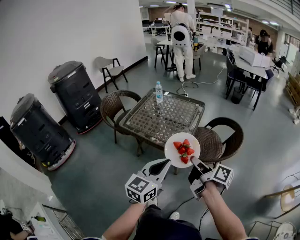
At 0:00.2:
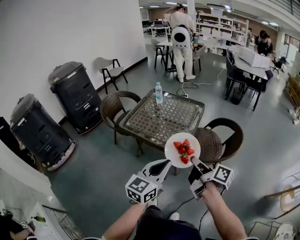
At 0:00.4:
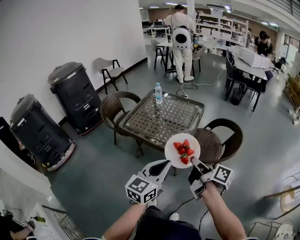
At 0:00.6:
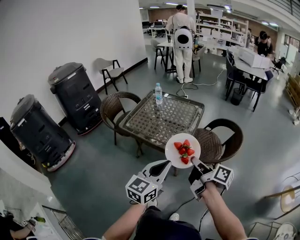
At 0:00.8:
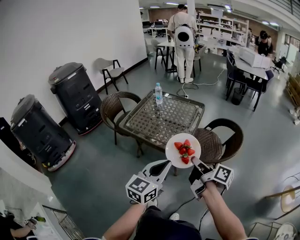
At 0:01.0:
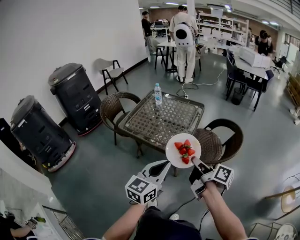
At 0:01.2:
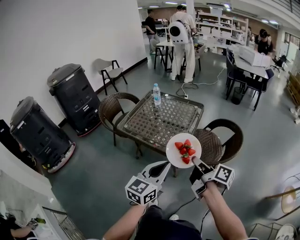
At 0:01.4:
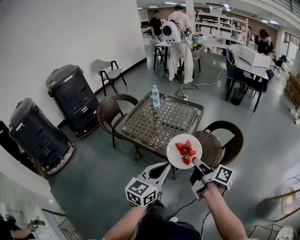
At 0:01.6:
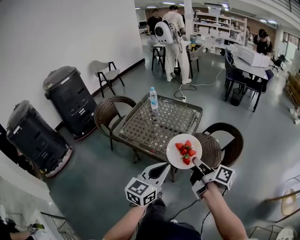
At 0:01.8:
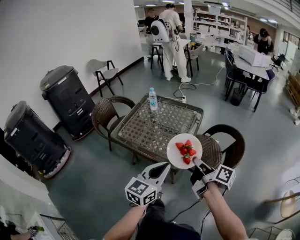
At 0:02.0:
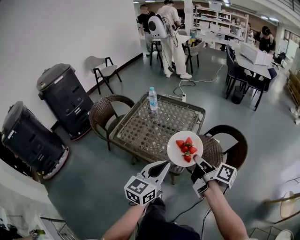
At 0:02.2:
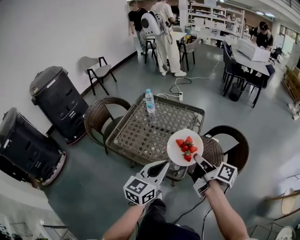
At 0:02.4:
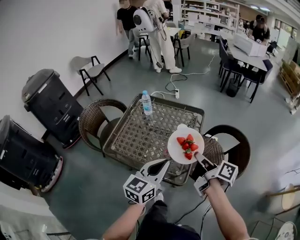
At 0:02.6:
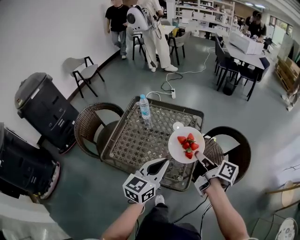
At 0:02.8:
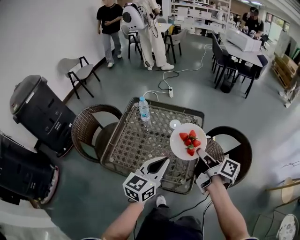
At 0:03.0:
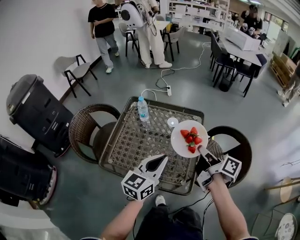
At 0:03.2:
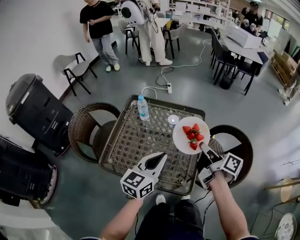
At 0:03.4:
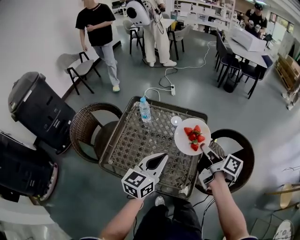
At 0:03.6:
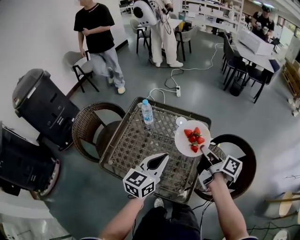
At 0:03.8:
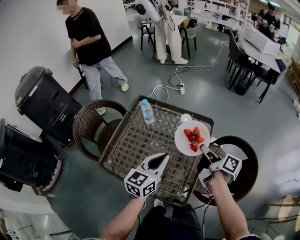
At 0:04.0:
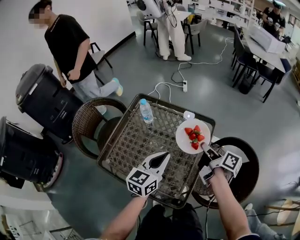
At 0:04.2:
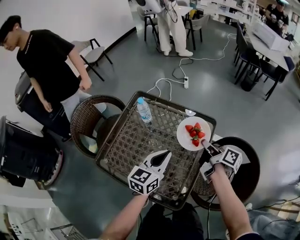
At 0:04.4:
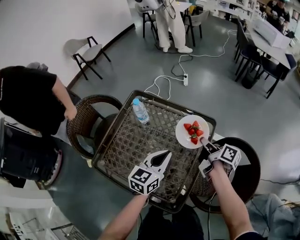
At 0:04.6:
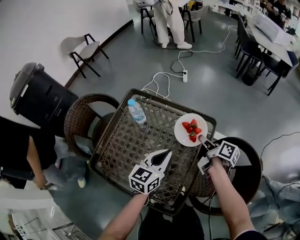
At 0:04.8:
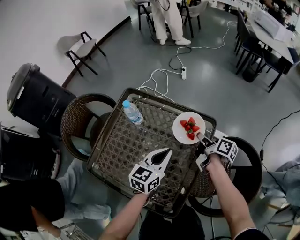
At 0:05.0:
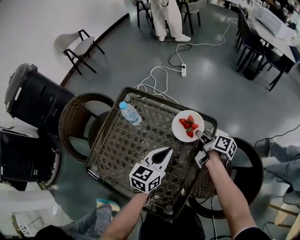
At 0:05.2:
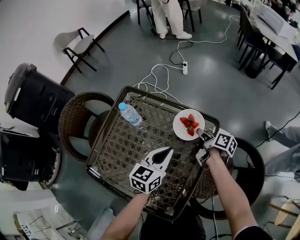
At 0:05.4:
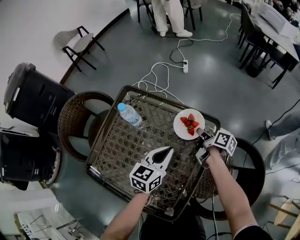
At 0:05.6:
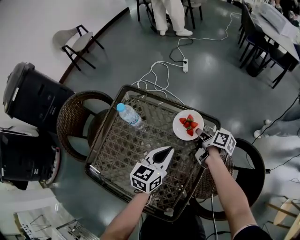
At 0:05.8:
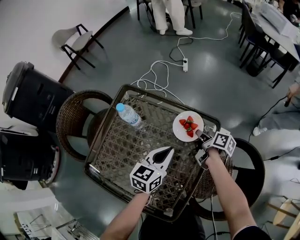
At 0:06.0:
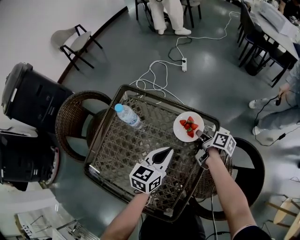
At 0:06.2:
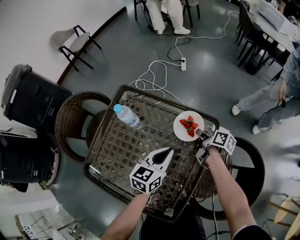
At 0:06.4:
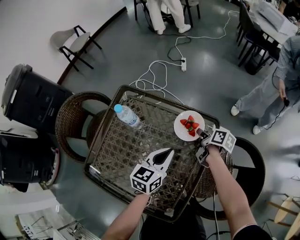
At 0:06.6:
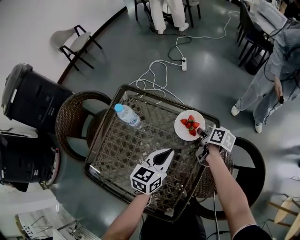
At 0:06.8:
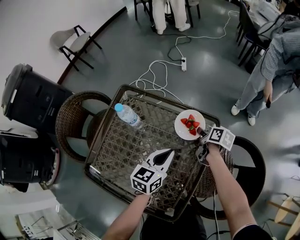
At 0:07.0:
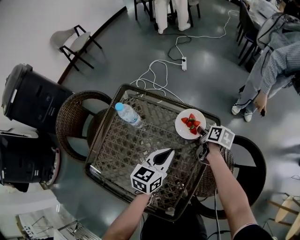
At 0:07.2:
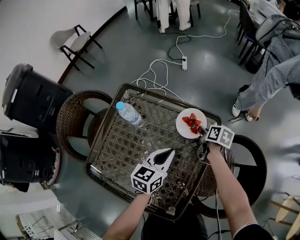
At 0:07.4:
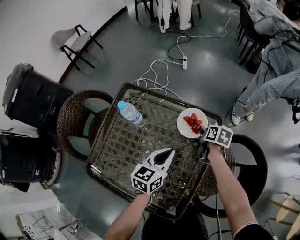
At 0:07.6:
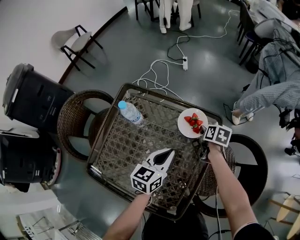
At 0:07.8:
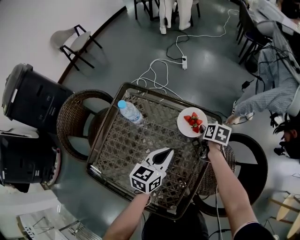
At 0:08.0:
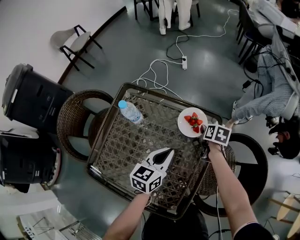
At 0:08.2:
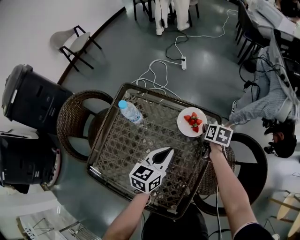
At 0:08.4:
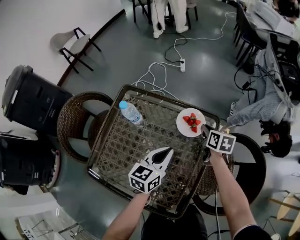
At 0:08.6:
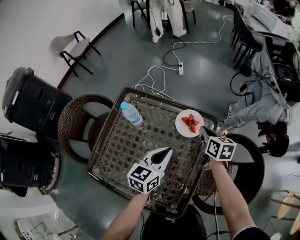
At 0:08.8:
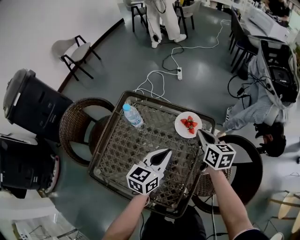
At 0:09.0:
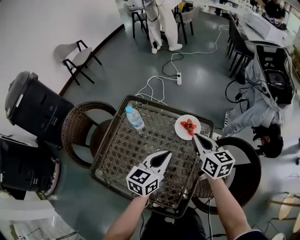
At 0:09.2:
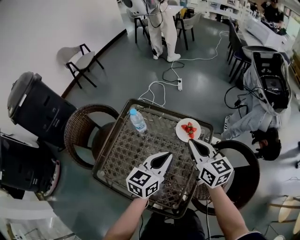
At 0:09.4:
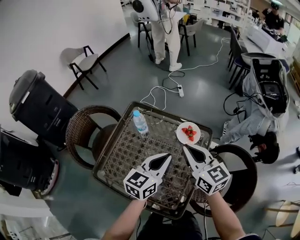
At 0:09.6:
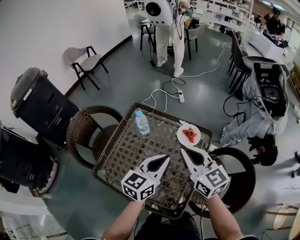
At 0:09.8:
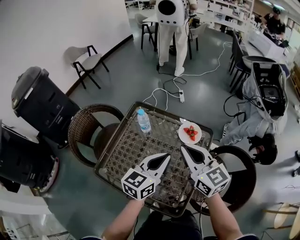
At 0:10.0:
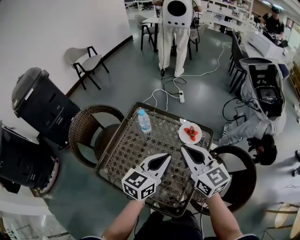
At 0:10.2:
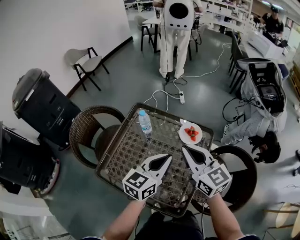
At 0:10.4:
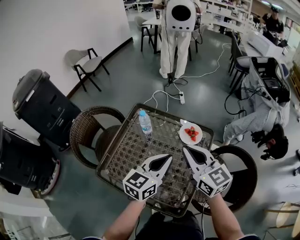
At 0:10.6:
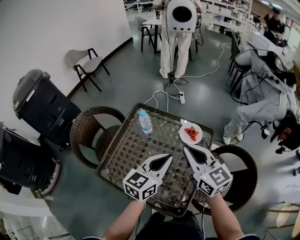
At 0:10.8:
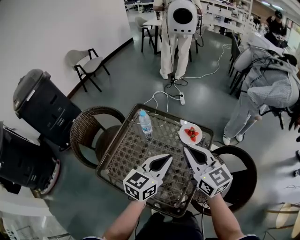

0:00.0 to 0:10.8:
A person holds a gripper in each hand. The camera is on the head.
0:00.0 to 0:01.6: Both grippers travel together forward, about 5 cm.
0:01.6 to 0:03.0: Both grippers move forward, some 25 cm.
0:03.0 to 0:04.6: The grippers both shift forward and downward by approximately 25 cm.
0:04.6 to 0:06.2: The left gripper shifts about 10 cm forward and downward. Meanwhile the right gripper travels downward and forward by some 15 cm.
0:06.2 to 0:07.8: The right gripper changes its angle by about 30 degrees.
0:07.8 to 0:09.2: The left gripper goes roughly 10 cm upward. The right gripper moves upward and backward, roughly 30 cm, and angles its fingers upward, by about 40 degrees.
0:09.2 to 0:10.8: The left gripper shifts roughly 5 cm upward, while the right gripper travels upward and backward by approximately 10 cm.

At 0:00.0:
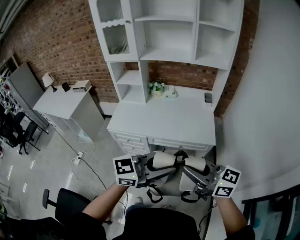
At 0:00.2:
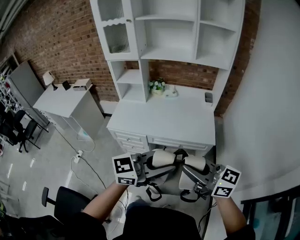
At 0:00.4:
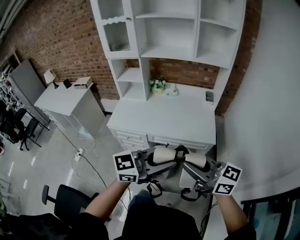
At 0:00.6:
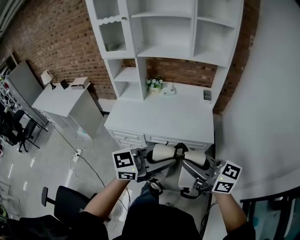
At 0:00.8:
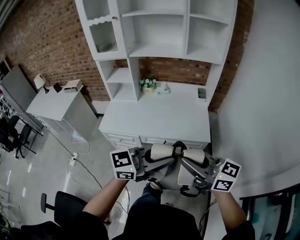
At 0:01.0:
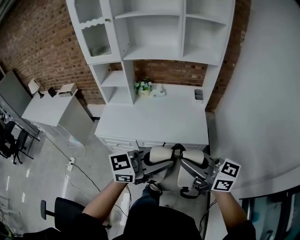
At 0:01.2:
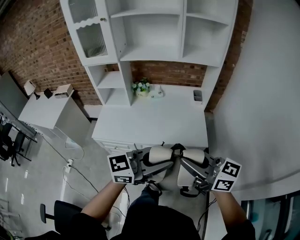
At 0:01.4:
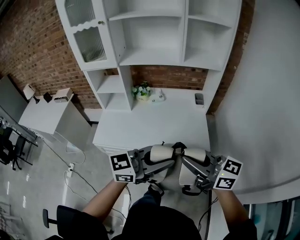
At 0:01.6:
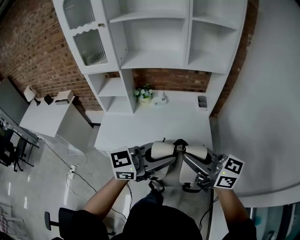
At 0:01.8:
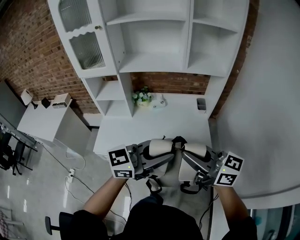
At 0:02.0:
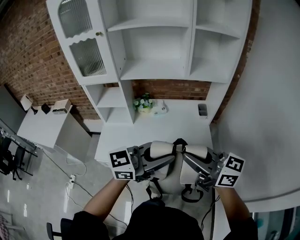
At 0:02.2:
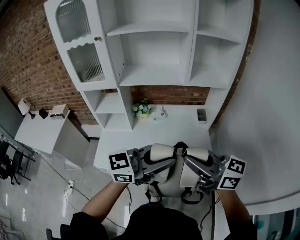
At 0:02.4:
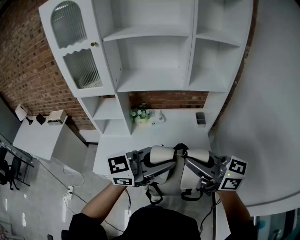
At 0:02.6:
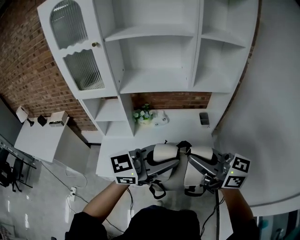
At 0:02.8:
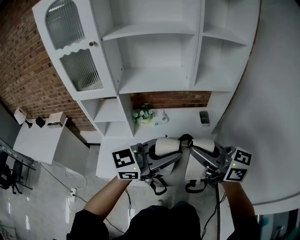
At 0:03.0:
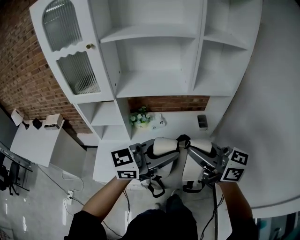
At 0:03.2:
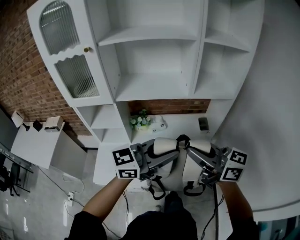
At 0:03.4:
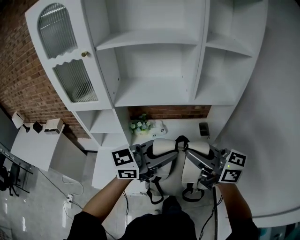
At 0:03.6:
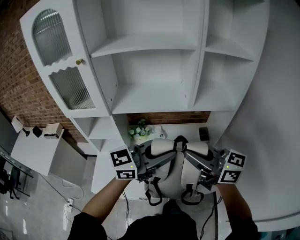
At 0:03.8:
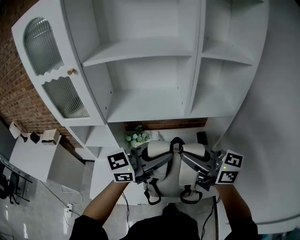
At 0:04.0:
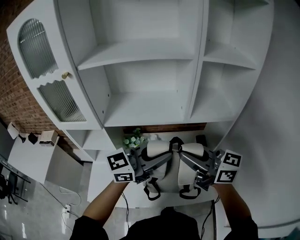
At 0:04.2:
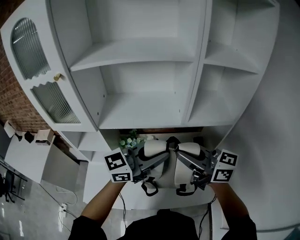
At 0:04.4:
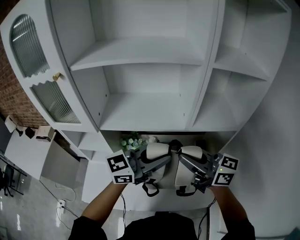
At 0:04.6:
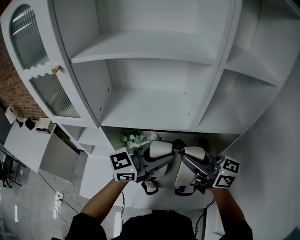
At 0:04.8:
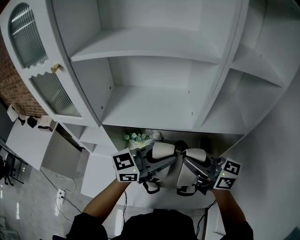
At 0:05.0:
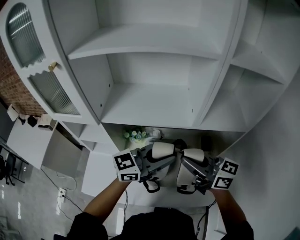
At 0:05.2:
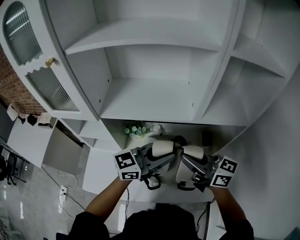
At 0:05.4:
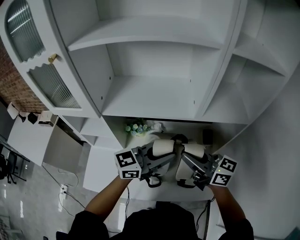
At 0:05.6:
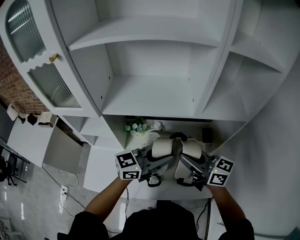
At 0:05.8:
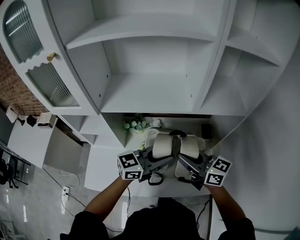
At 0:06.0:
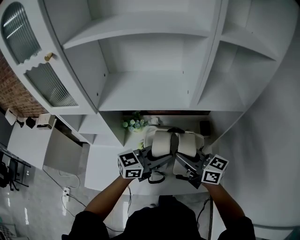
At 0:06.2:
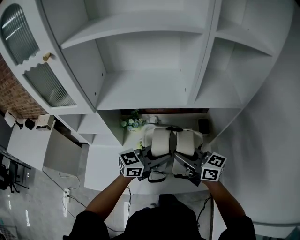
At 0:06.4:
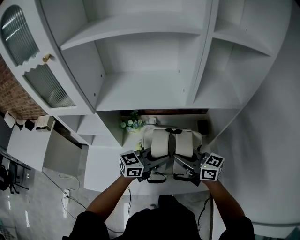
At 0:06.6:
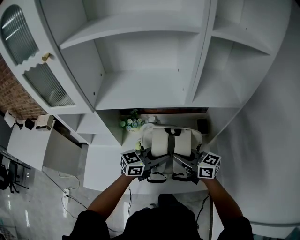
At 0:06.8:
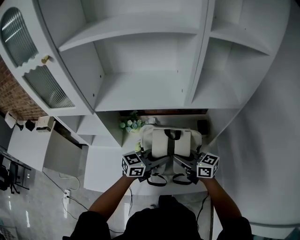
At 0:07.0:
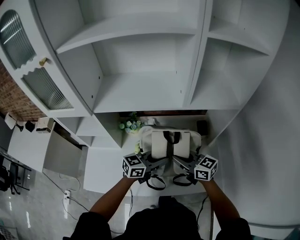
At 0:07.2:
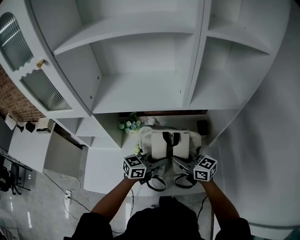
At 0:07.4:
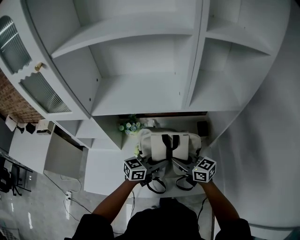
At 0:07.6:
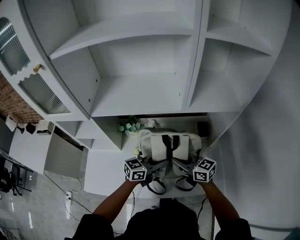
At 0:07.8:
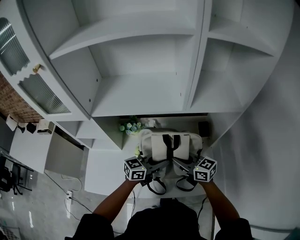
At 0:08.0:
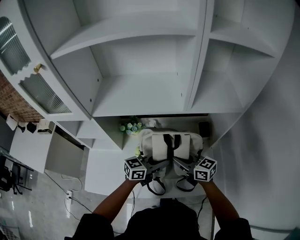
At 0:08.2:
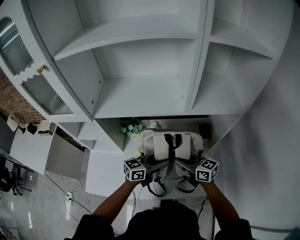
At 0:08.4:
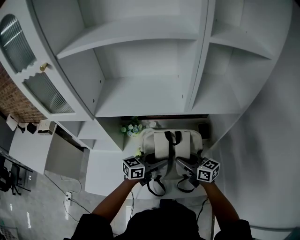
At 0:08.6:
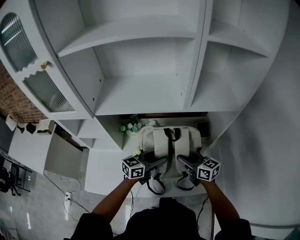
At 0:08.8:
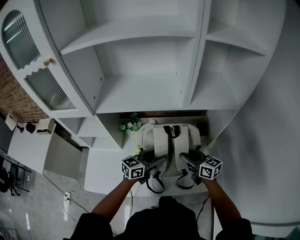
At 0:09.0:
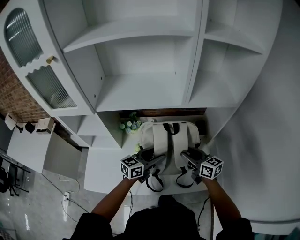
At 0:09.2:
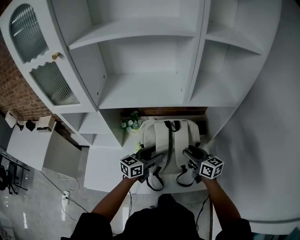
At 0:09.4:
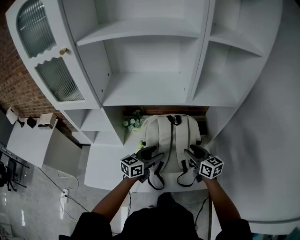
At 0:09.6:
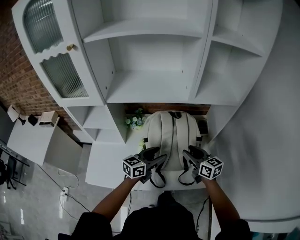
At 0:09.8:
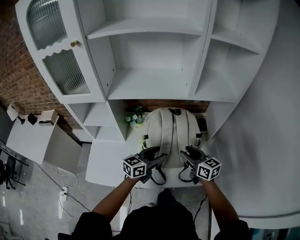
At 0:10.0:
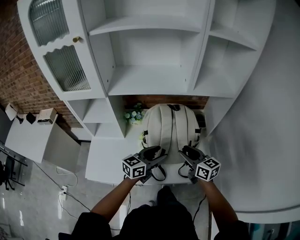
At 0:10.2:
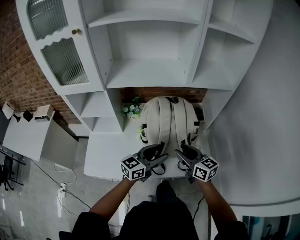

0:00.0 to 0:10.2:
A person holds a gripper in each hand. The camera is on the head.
0:00.0 to 0:01.4: The right gripper moves roughly 15 cm, while the left gripper shifts by about 15 cm.
0:01.4 to 0:03.0: The right gripper ends up approximately 25 cm from where it was; the left gripper shifts by about 25 cm.
0:03.0 to 0:04.4: The right gripper changes place by some 20 cm. Meanwhile the left gripper changes place by roughly 20 cm.
0:04.4 to 0:05.8: Both grippers move downward, approximately 10 cm.
0:05.8 to 0:07.2: The two grippers go about 10 cm downward.
0:07.2 to 0:08.8: The left gripper opens, while the right gripper is displaced to the right by roughly 5 cm, and opens up.
0:08.8 to 0:10.2: The grippers both shift backward by approximately 15 cm.

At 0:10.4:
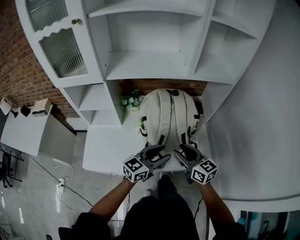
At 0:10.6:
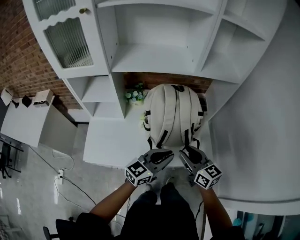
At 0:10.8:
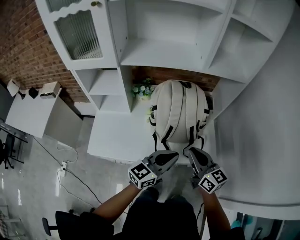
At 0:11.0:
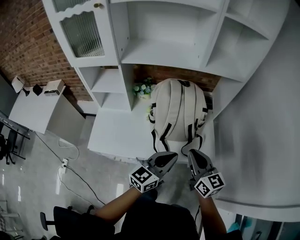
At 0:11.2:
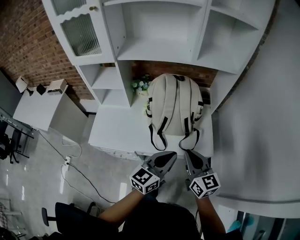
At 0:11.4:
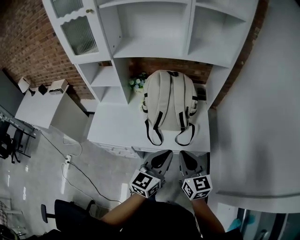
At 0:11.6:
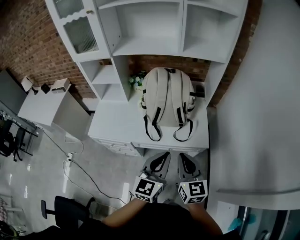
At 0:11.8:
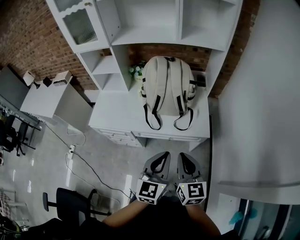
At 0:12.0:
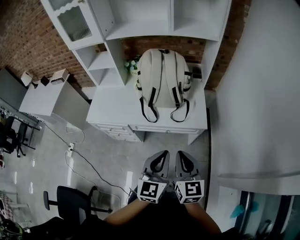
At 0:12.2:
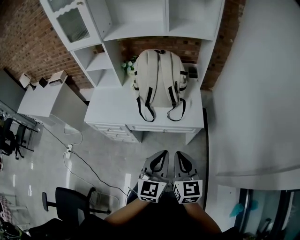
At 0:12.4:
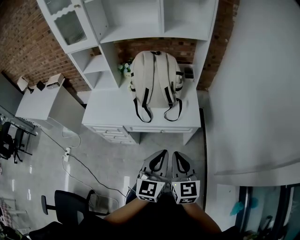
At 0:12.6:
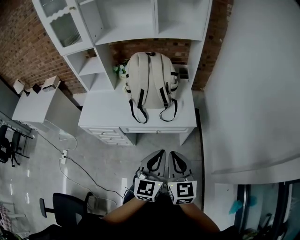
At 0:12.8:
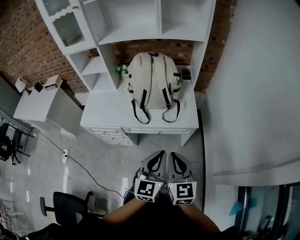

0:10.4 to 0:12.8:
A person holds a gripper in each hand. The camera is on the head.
0:10.4 to 0:11.6: The grippers both shift backward and to the right by approximately 25 cm. The left gripper swivels roughly 40 degrees, and closes its fingers. The right gripper closes its fingers.
0:11.6 to 0:12.8: The left gripper travels backward and to the right by approximately 10 cm; the right gripper is displaced backward by approximately 10 cm.
